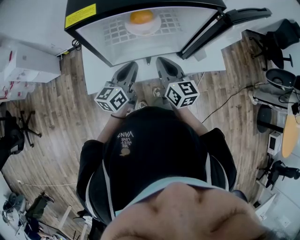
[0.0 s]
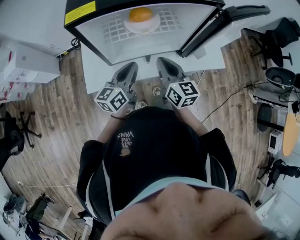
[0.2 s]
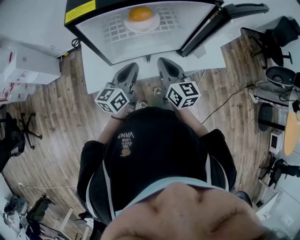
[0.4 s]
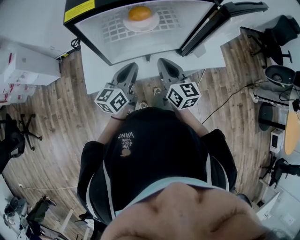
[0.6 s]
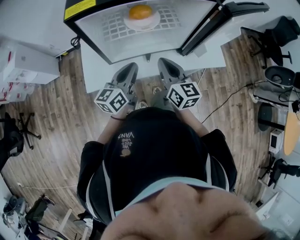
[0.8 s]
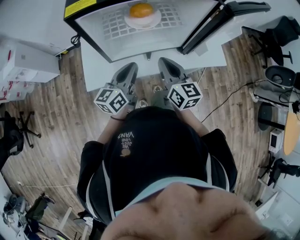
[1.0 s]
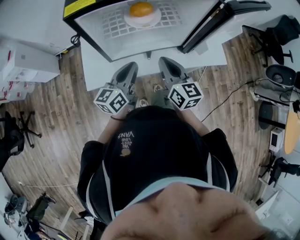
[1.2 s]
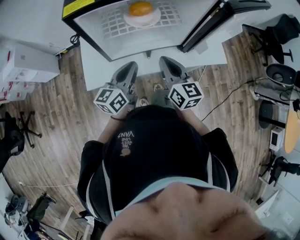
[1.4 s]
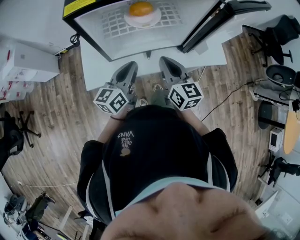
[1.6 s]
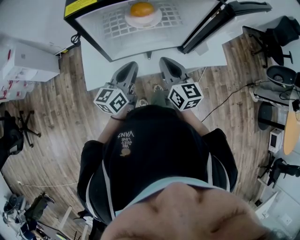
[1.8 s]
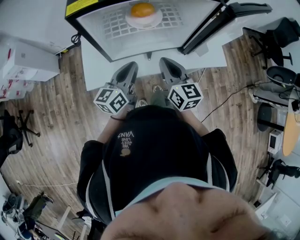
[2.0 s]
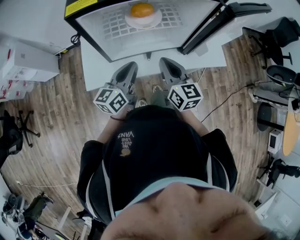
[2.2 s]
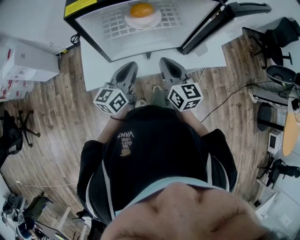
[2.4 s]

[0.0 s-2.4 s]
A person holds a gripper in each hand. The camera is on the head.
0.0 to 1.2 s: The grippers move only a little.
1.2 to 2.4 s: The two grippers keep their place.

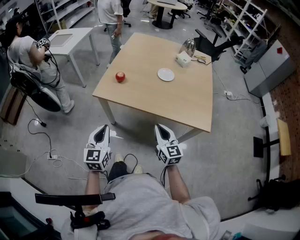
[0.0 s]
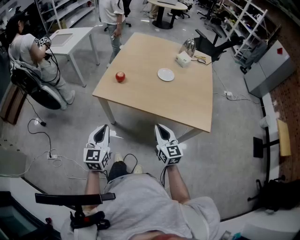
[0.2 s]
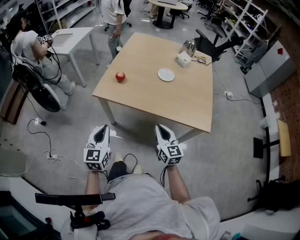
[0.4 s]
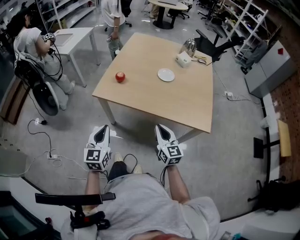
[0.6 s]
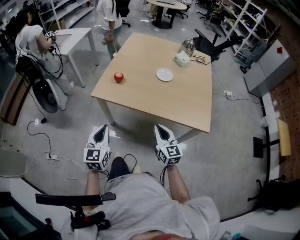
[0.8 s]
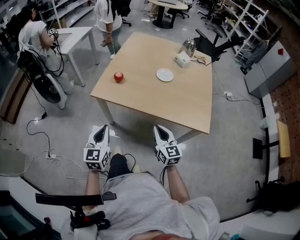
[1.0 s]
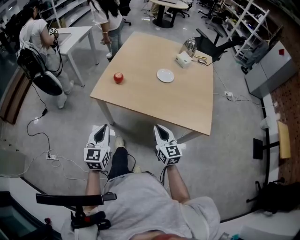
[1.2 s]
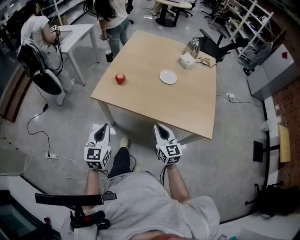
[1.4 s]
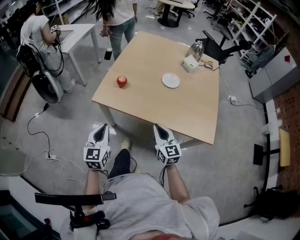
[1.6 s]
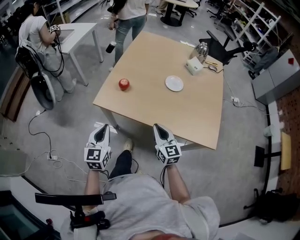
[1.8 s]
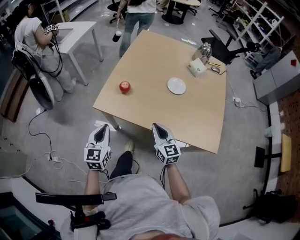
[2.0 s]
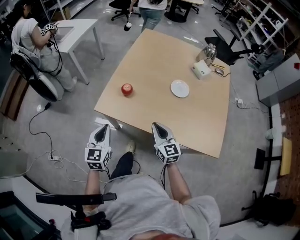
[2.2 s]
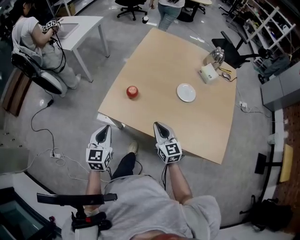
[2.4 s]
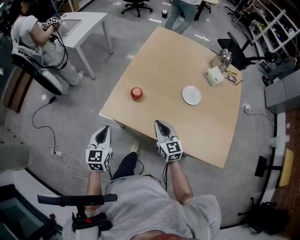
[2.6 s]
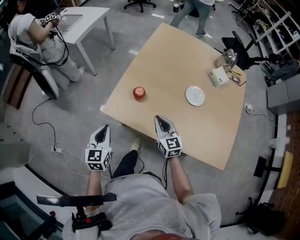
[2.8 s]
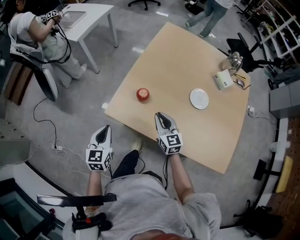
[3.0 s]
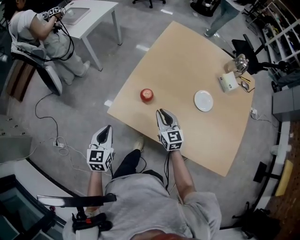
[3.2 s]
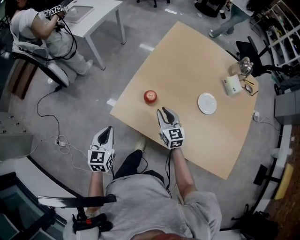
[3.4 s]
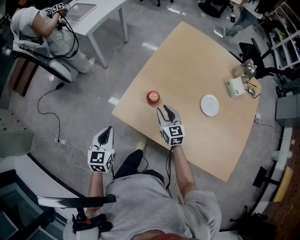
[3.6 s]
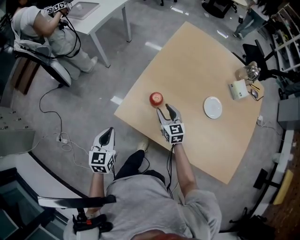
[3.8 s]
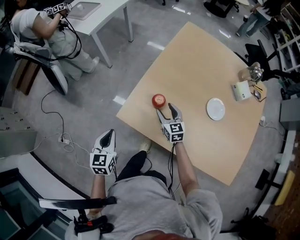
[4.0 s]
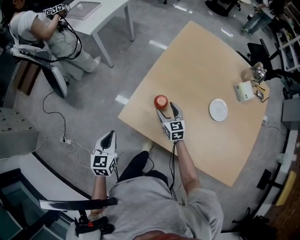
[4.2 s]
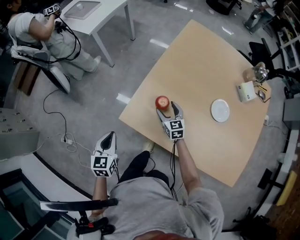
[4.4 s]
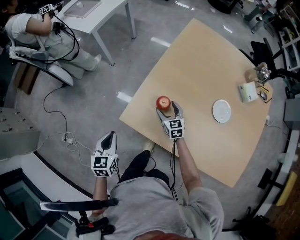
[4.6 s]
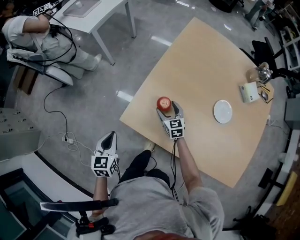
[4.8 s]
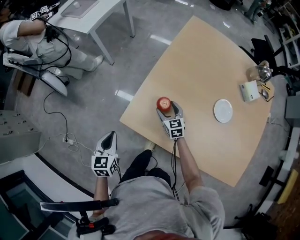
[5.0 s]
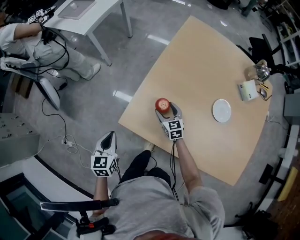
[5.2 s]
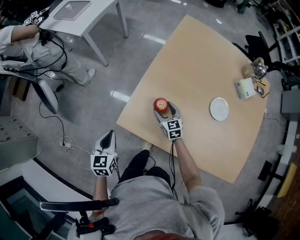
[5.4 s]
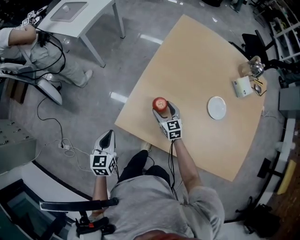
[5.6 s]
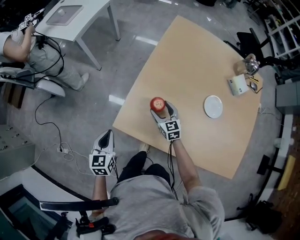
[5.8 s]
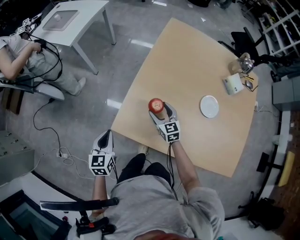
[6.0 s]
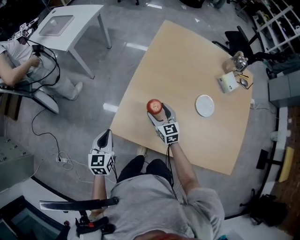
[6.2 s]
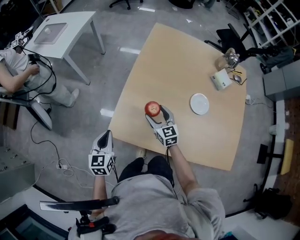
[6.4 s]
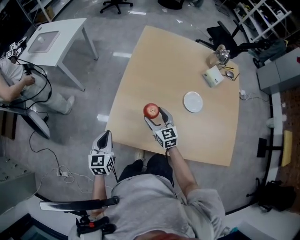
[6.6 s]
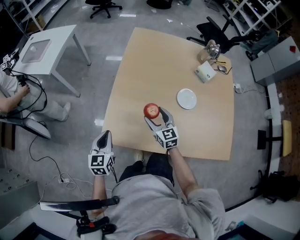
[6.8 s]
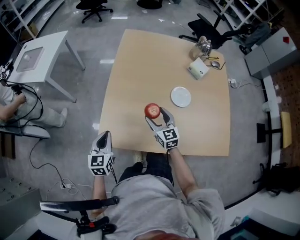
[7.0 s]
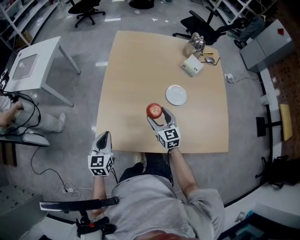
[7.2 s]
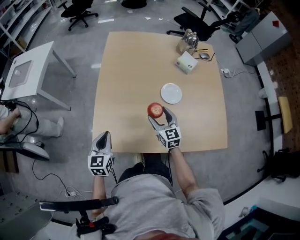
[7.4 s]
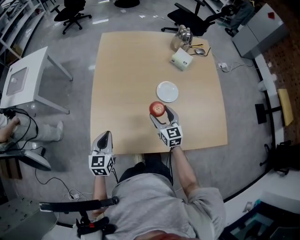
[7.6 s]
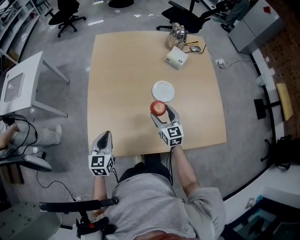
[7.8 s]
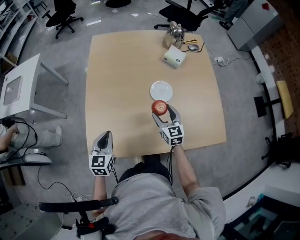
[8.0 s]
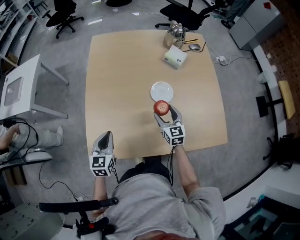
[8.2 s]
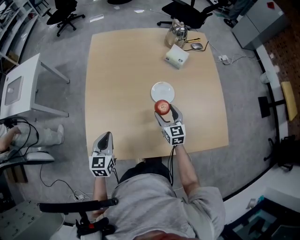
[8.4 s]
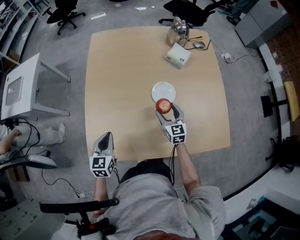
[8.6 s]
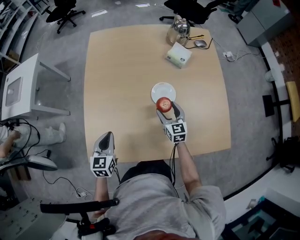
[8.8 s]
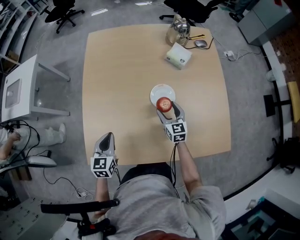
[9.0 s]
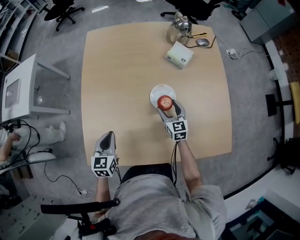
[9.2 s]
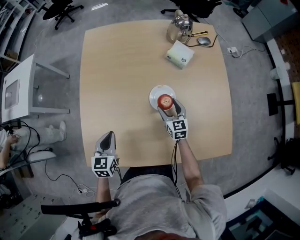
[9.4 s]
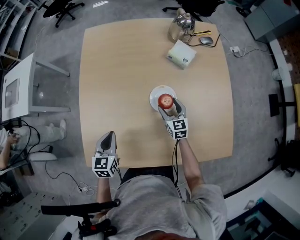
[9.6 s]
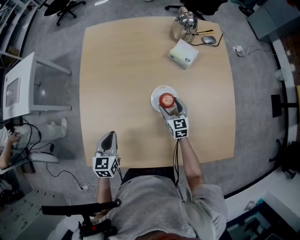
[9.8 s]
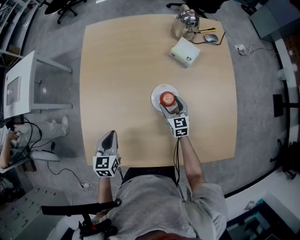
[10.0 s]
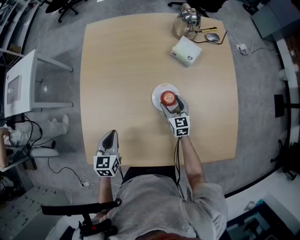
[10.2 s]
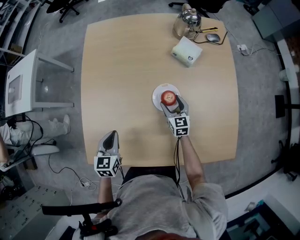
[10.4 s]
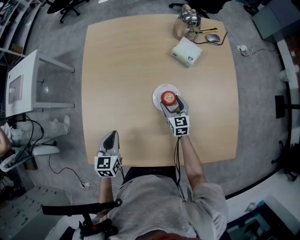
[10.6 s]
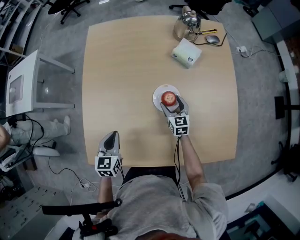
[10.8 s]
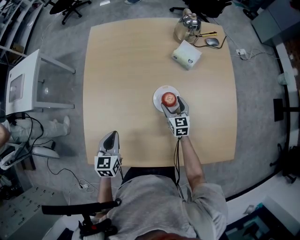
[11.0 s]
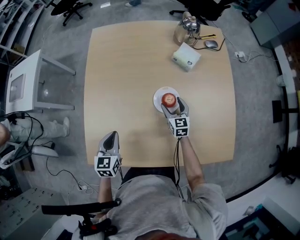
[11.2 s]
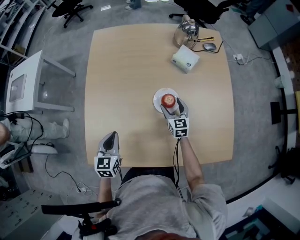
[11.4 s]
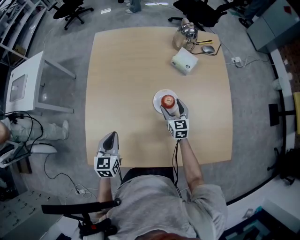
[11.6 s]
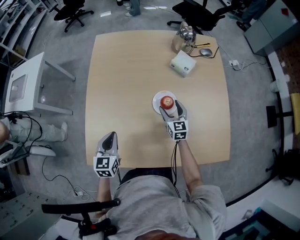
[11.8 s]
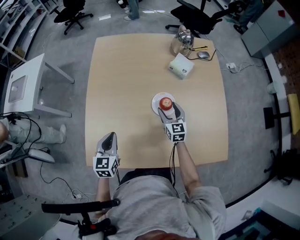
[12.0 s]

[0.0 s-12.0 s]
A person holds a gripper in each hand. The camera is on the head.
0.0 to 1.6 s: Both grippers travel together forward, approximately 10 cm.
1.6 to 3.0 s: The right gripper travels forward by approximately 30 cm. Meanwhile the left gripper heads forward and to the left, covering roughly 20 cm.
3.0 to 4.4 s: The right gripper shifts about 20 cm forward and downward, and opens up, while the left gripper is displaced to the left by roughly 5 cm.
4.4 to 6.0 s: The left gripper travels forward by about 5 cm.
6.0 to 7.6 s: The left gripper changes place by about 20 cm, and turns by roughly 30 degrees. The right gripper moves approximately 25 cm, and swivels approximately 30 degrees.
7.6 to 9.0 s: The right gripper shifts about 15 cm to the right, forward and downward. Meanwhile the left gripper travels forward and to the right by approximately 10 cm.
9.0 to 10.4 s: The left gripper moves roughly 5 cm. The right gripper heads downward and forward, covering some 10 cm.
10.4 to 12.0 s: The left gripper shifts some 5 cm upward. The right gripper is displaced upward by about 10 cm.

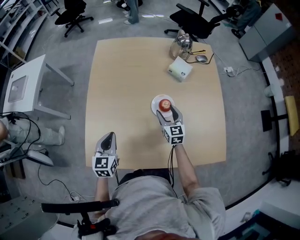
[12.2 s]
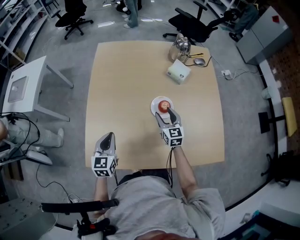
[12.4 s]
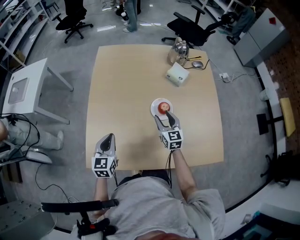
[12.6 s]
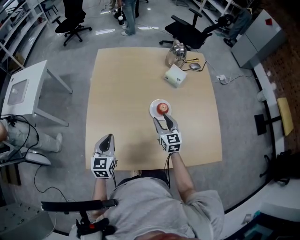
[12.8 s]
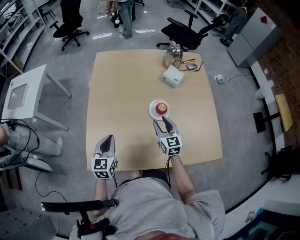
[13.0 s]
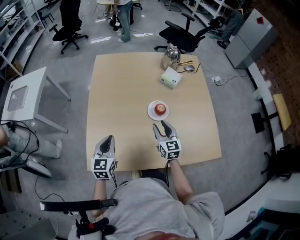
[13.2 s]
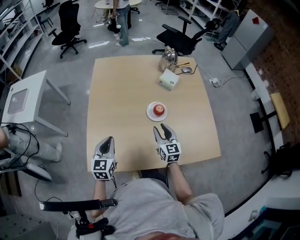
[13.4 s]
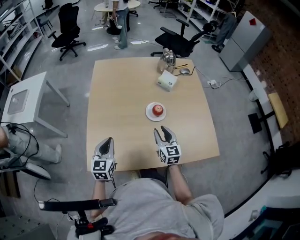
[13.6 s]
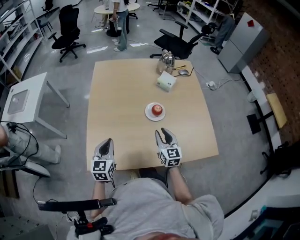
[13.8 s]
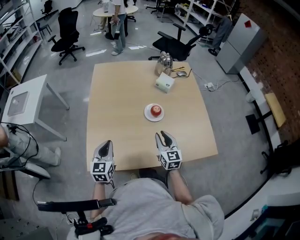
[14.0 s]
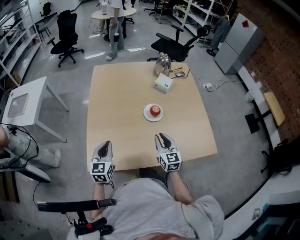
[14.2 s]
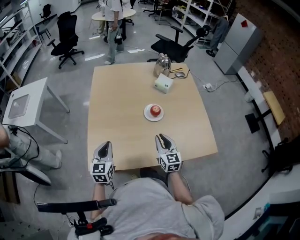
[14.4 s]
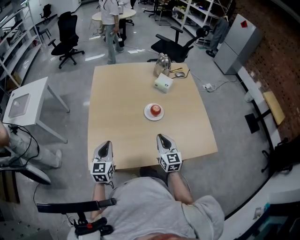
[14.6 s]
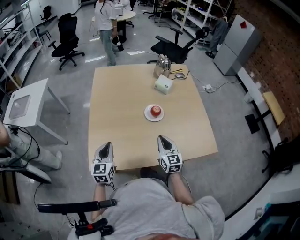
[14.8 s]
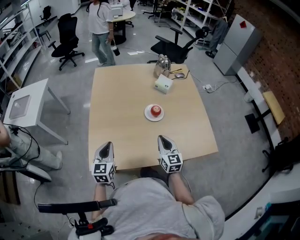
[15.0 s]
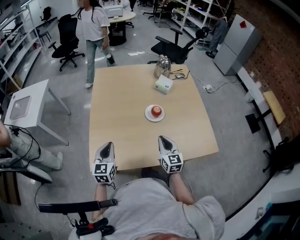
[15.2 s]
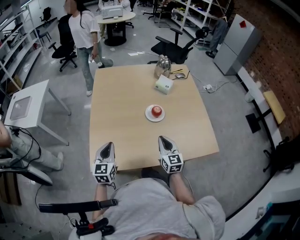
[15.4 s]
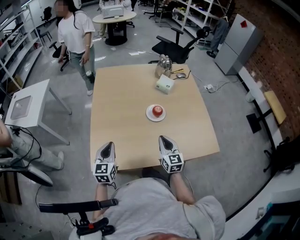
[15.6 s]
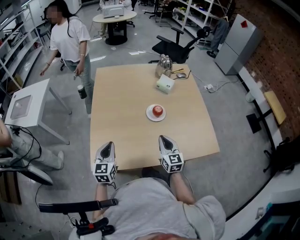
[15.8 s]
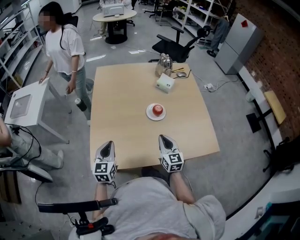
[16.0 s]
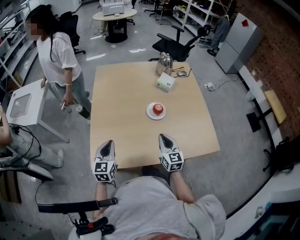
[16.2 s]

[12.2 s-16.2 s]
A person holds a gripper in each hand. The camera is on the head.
12.2 to 13.6 s: The left gripper is displaced backward by roughly 5 cm. The right gripper travels backward and upward by about 15 cm, and closes up.
13.6 to 14.8 s: The right gripper travels backward by approximately 10 cm, and closes; the left gripper moves about 5 cm.
14.8 to 16.2 s: Both grippers stay about where they are.

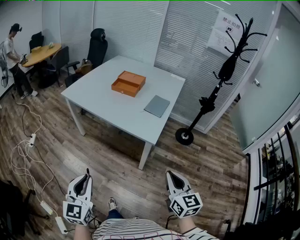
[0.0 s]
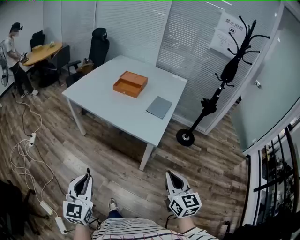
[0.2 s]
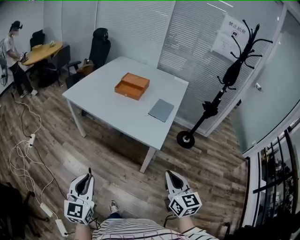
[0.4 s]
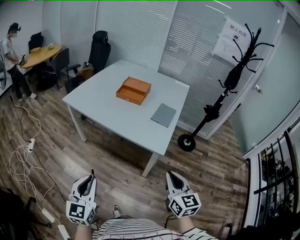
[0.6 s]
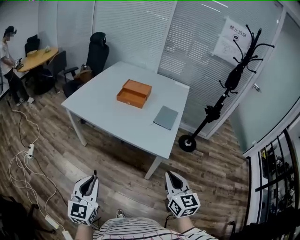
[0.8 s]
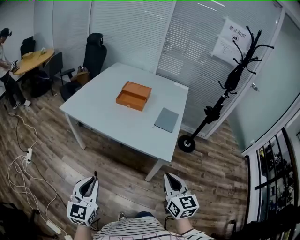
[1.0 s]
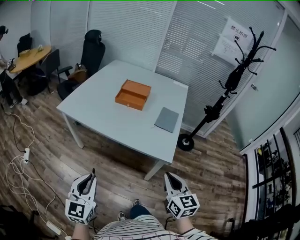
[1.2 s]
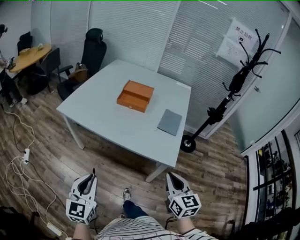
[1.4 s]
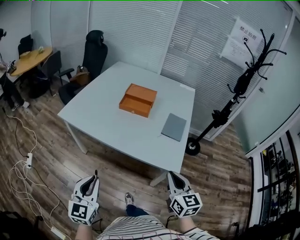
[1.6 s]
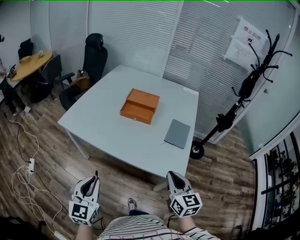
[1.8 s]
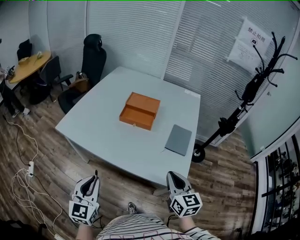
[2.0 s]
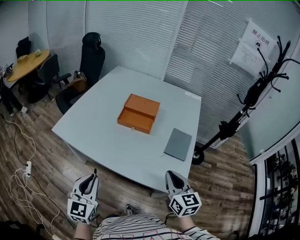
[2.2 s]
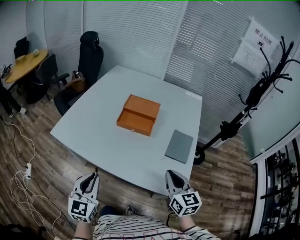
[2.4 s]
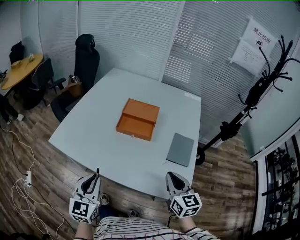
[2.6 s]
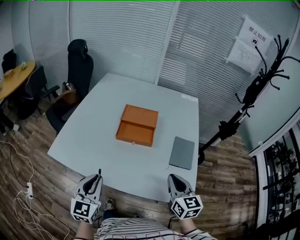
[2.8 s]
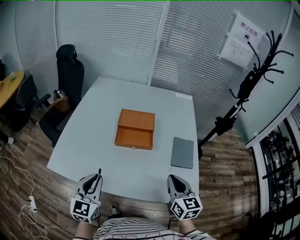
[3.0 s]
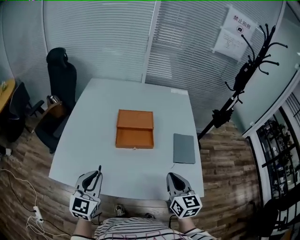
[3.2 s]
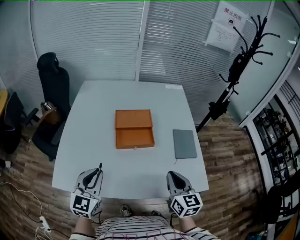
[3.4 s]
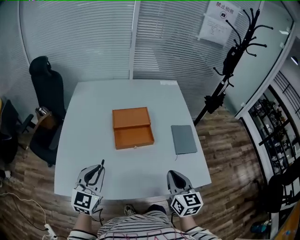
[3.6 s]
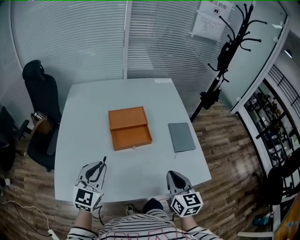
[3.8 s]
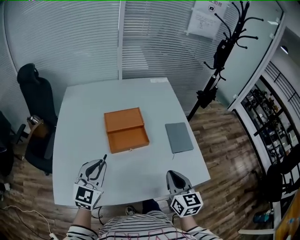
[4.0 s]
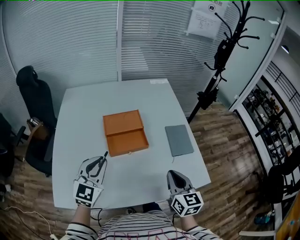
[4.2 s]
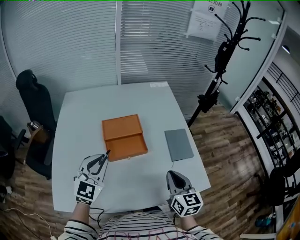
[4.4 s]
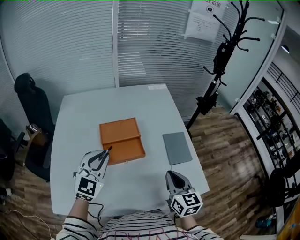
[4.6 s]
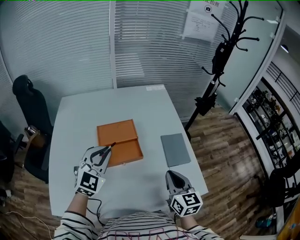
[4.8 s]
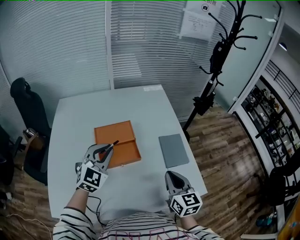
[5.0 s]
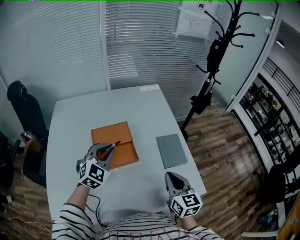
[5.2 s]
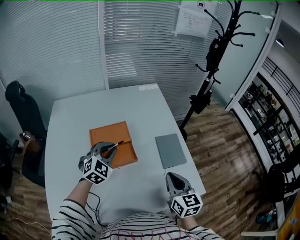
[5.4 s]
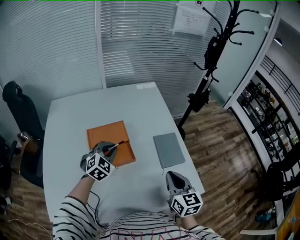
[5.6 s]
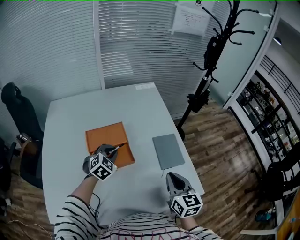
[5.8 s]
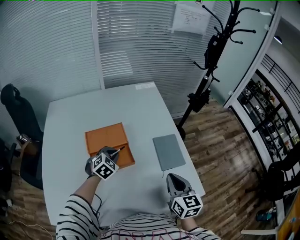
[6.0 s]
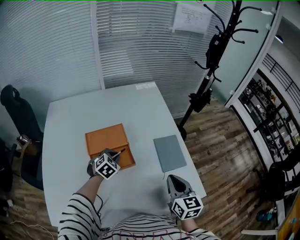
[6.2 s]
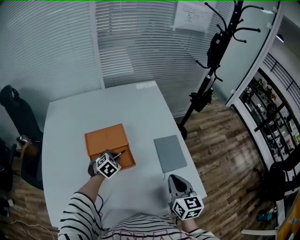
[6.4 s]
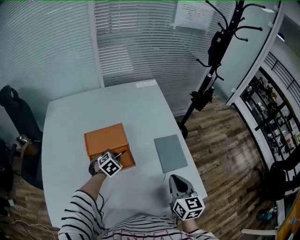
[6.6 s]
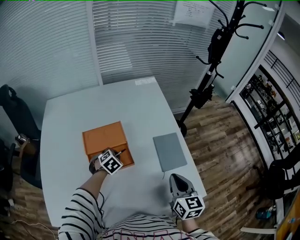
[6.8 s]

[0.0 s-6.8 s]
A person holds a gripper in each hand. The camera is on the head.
0.0 to 1.4 s: Both grippers move forward and to the left, some 25 cm.
1.4 to 2.8 s: Both grippers travel together forward, about 30 cm.
2.8 to 4.0 s: The left gripper shifts by approximately 20 cm, and turns by some 30 degrees; the right gripper shifts by roughly 10 cm, and changes its angle by roughly 30 degrees.
4.0 to 5.4 s: The left gripper shifts about 25 cm forward and to the right, and changes its angle by roughly 30 degrees. The right gripper shifts some 10 cm forward and to the right.
5.4 to 6.8 s: The left gripper shifts roughly 20 cm downward, and tips its fingers downward by approximately 30 degrees. Meanwhile the right gripper ends up about 5 cm from where it was.
